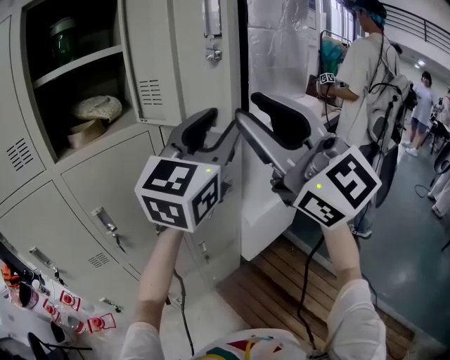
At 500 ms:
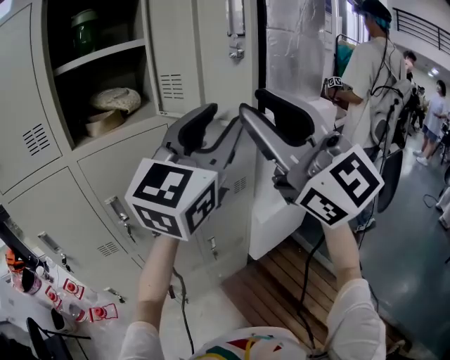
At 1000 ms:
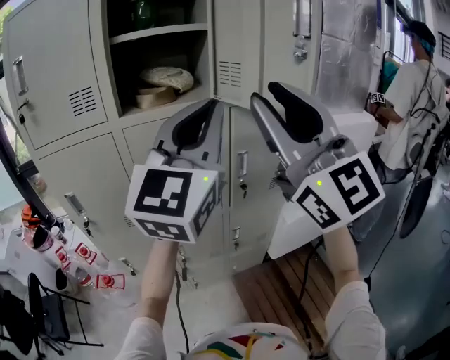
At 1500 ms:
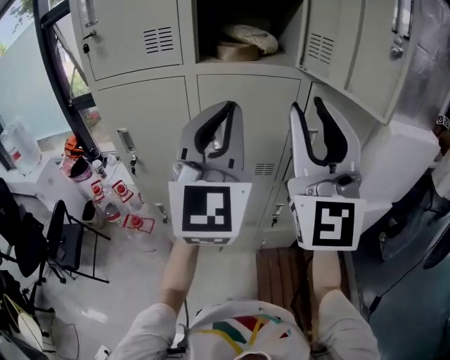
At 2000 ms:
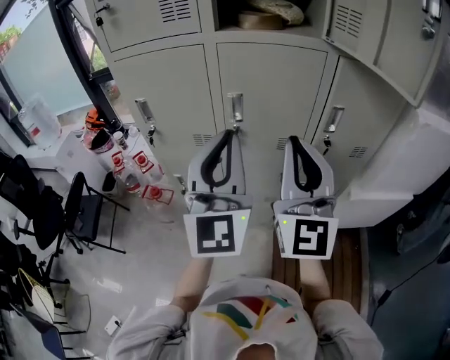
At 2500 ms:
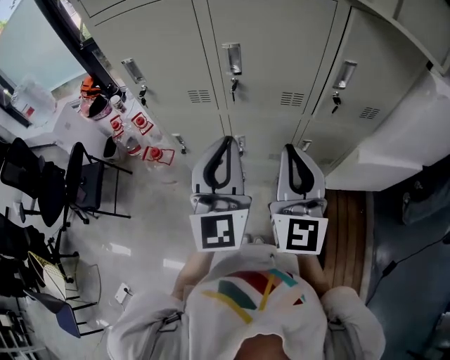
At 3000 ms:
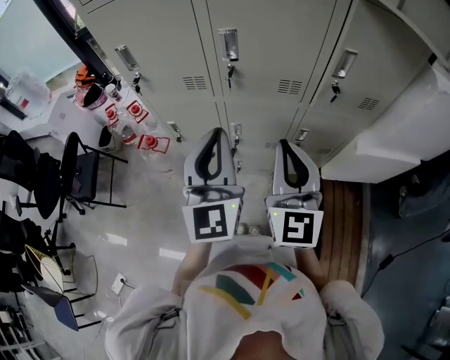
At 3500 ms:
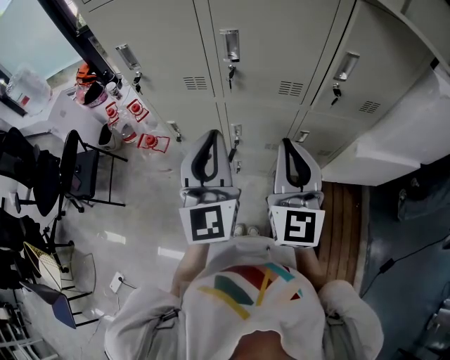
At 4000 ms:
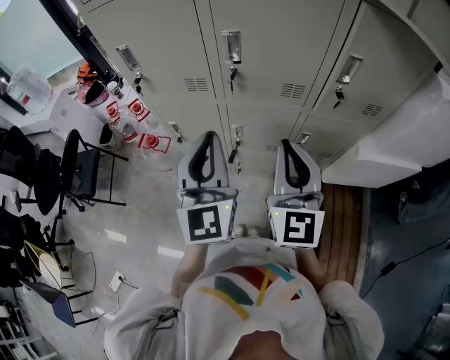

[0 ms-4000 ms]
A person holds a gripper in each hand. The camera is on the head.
0 ms to 2000 ms: The right gripper moves downward, approximately 20 cm, and closes its fingers, while the left gripper ends up roughly 35 cm from where it was, turns by about 60 degrees, and closes its fingers.
2000 ms to 4000 ms: Both grippers move downward, about 15 cm.

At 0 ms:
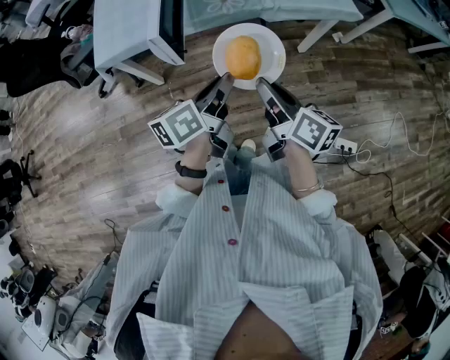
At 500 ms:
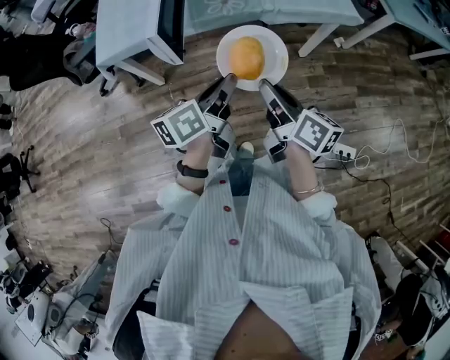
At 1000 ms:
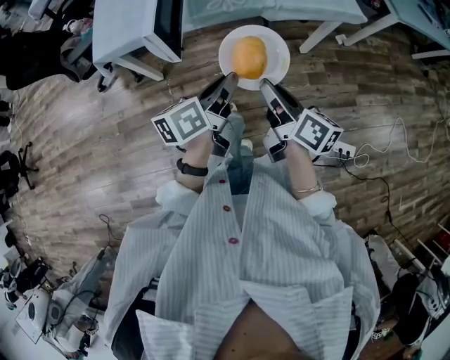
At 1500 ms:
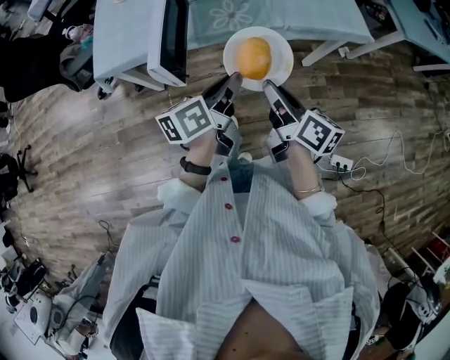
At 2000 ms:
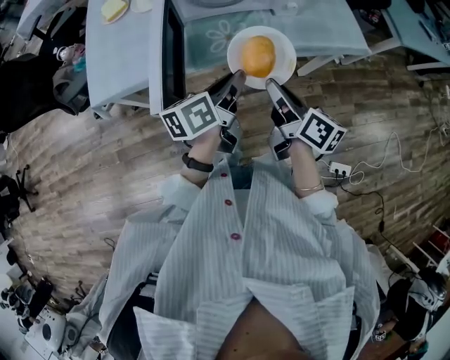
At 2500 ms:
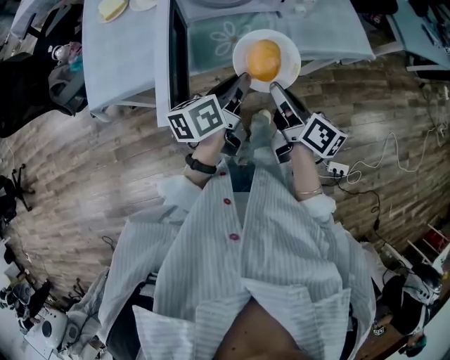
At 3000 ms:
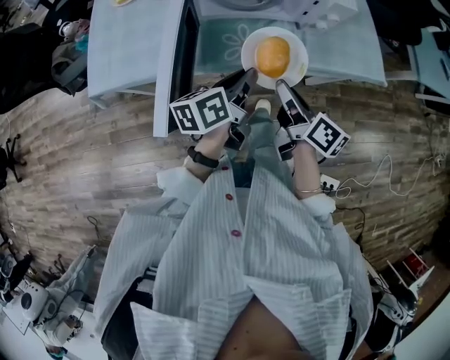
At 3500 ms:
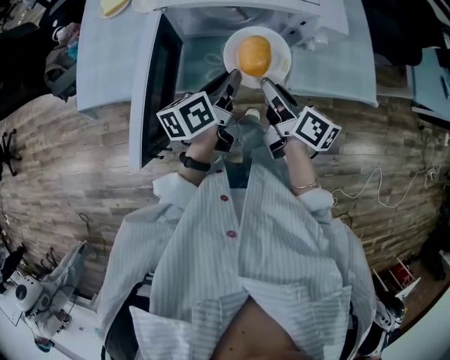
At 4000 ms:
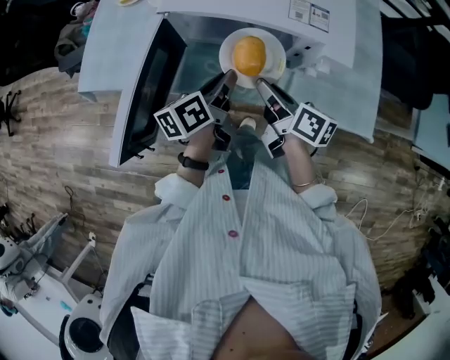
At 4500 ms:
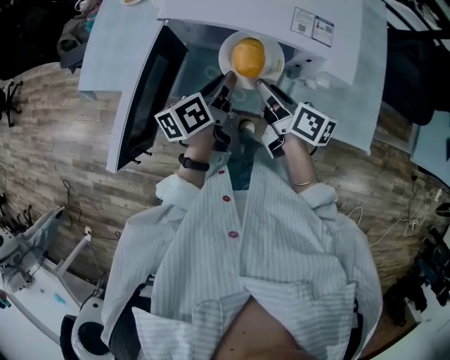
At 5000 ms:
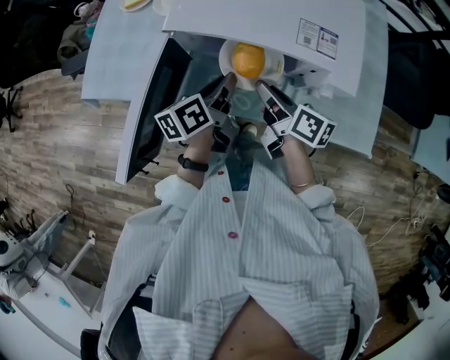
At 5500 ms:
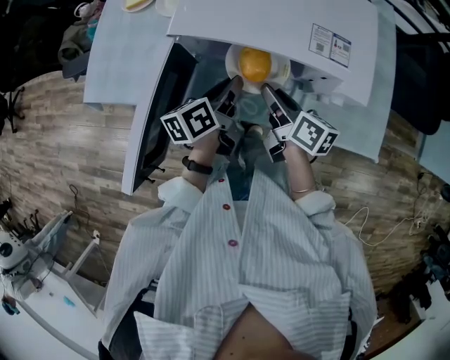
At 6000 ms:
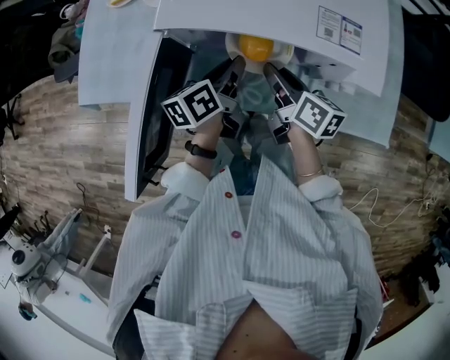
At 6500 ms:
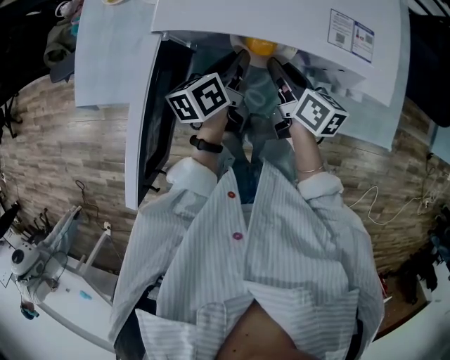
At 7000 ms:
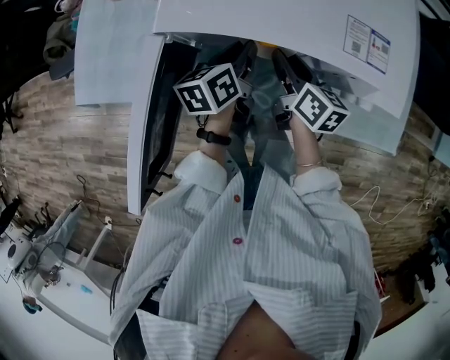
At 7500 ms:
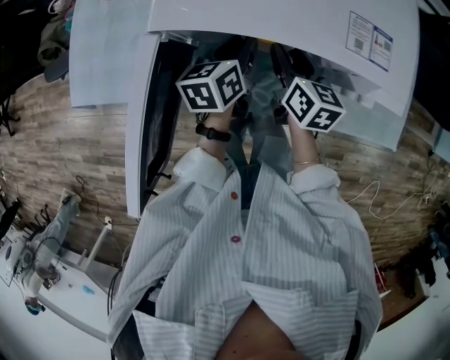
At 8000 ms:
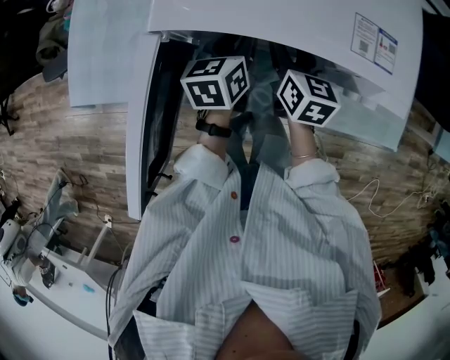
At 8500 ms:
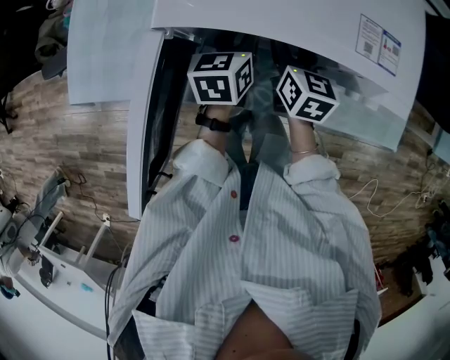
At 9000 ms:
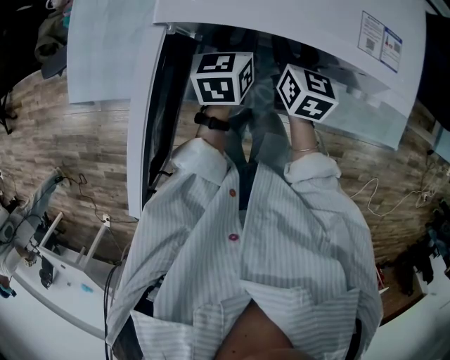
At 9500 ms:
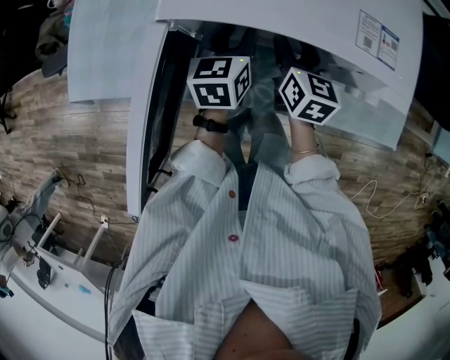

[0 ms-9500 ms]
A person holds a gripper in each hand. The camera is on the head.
0 ms to 2000 ms: The two grippers go some 20 cm forward.
2000 ms to 4000 ms: The right gripper ends up roughly 25 cm from where it was, and rotates some 30 degrees. Meanwhile the left gripper shifts by roughly 20 cm, and rotates approximately 30 degrees.
4000 ms to 5500 ms: The two grippers go some 5 cm forward.
5500 ms to 7500 ms: The two grippers go roughly 10 cm forward and downward. The right gripper turns by roughly 30 degrees; the left gripper swivels roughly 20 degrees.
7500 ms to 9500 ms: The grippers stay close to where they were, moving slightly.

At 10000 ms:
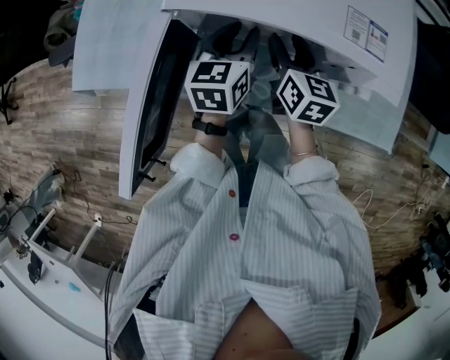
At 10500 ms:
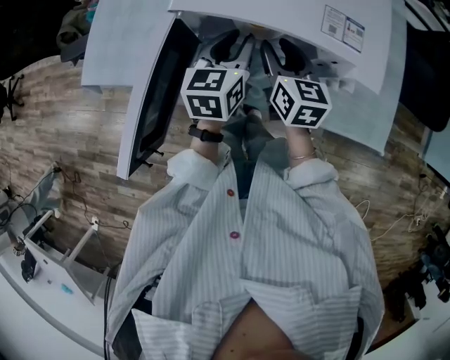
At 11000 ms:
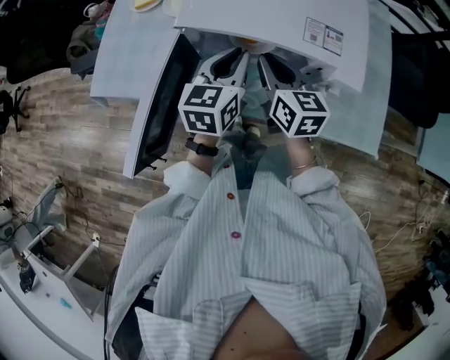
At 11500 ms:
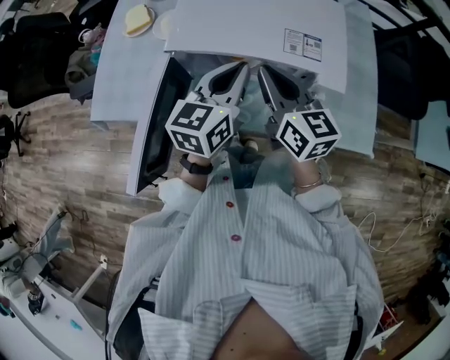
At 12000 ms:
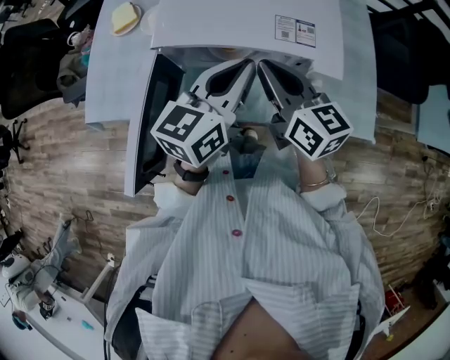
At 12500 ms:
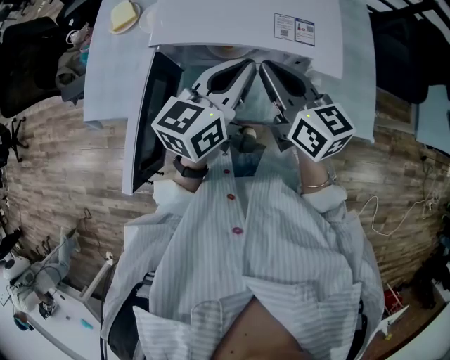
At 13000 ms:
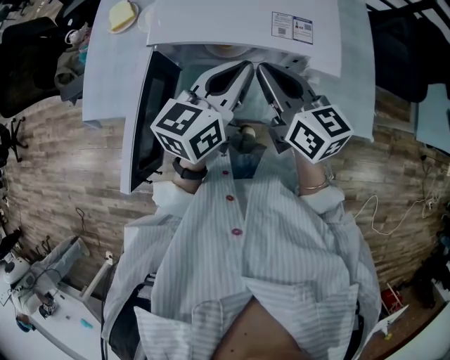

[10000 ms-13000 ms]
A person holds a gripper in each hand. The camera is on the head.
10000 ms to 11500 ms: The right gripper shifts about 20 cm upward, and closes; the left gripper heads upward and backward, covering approximately 20 cm, and closes up.
11500 ms to 13000 ms: The grippers make only small movements.

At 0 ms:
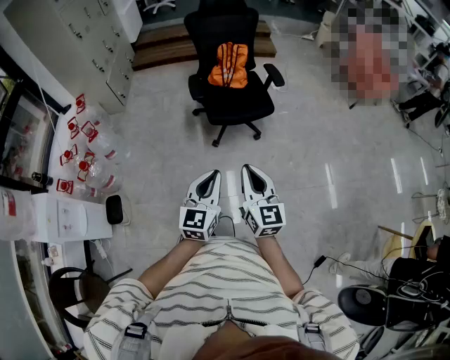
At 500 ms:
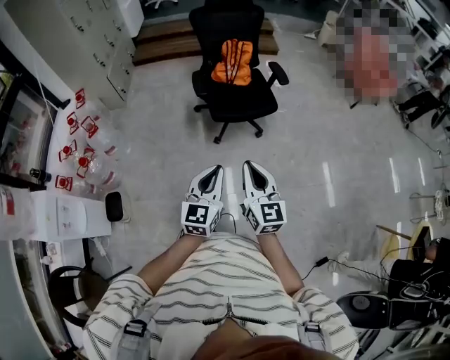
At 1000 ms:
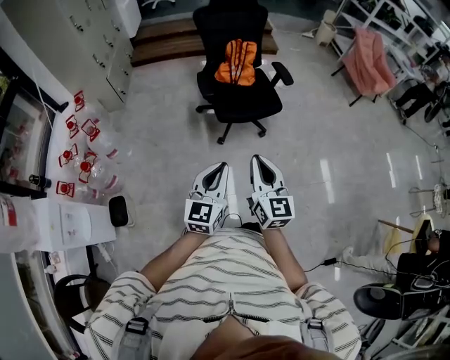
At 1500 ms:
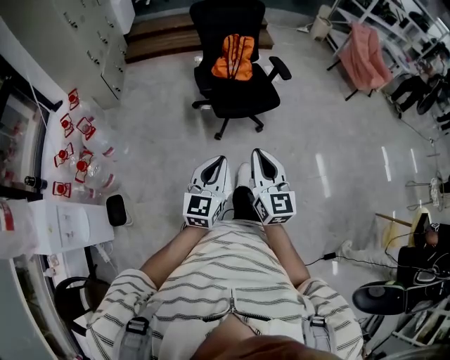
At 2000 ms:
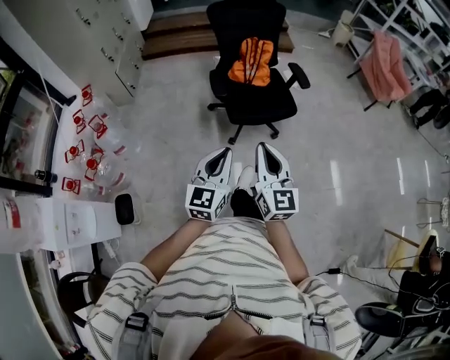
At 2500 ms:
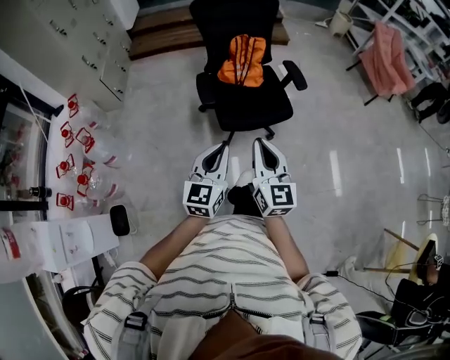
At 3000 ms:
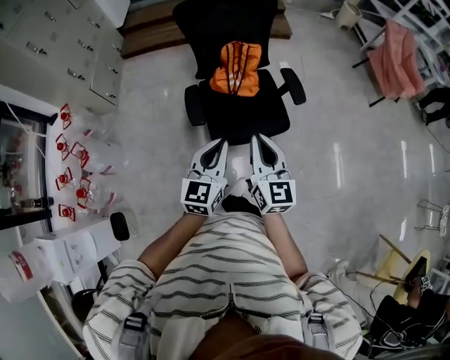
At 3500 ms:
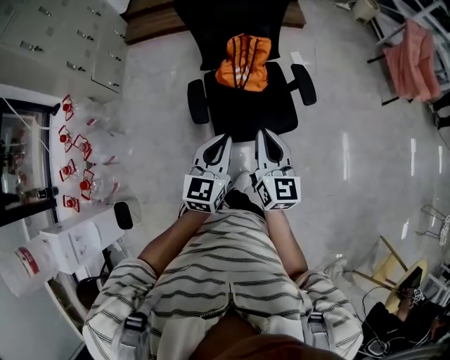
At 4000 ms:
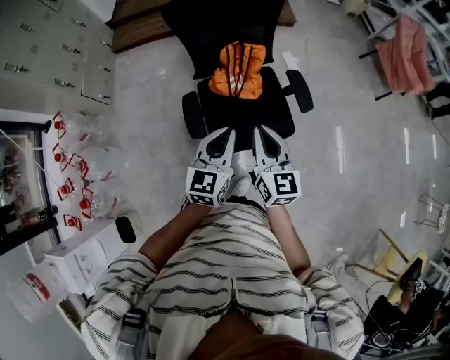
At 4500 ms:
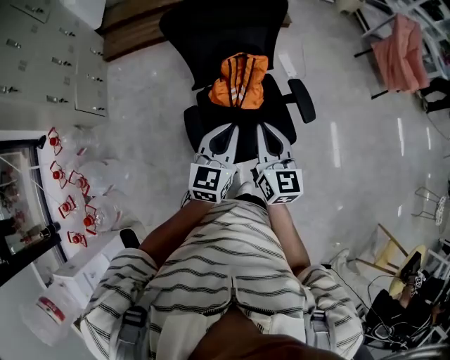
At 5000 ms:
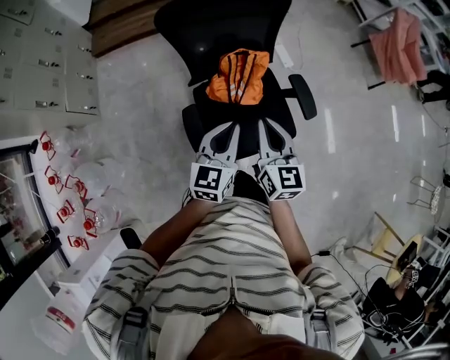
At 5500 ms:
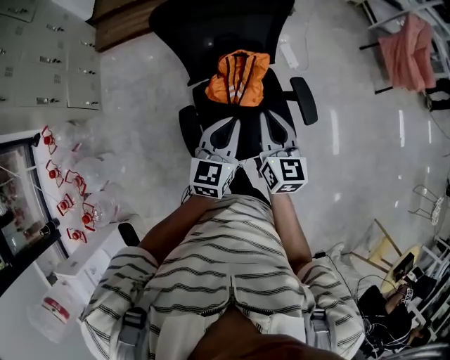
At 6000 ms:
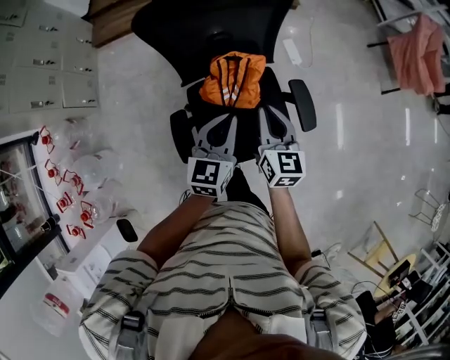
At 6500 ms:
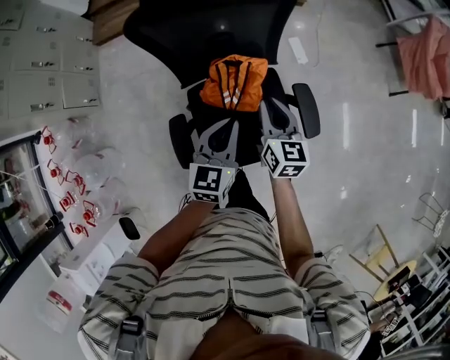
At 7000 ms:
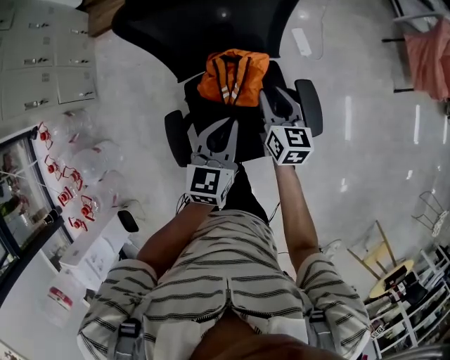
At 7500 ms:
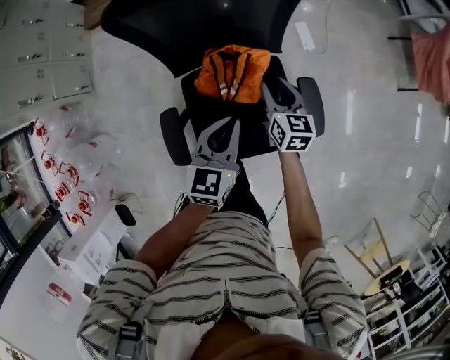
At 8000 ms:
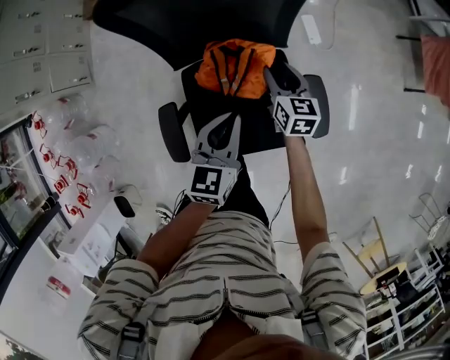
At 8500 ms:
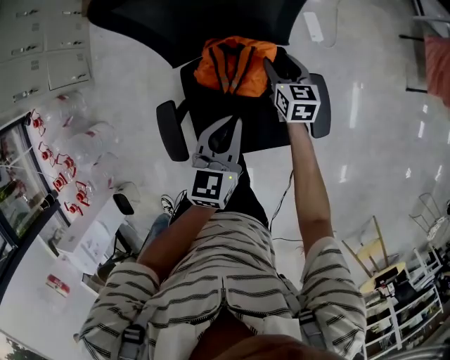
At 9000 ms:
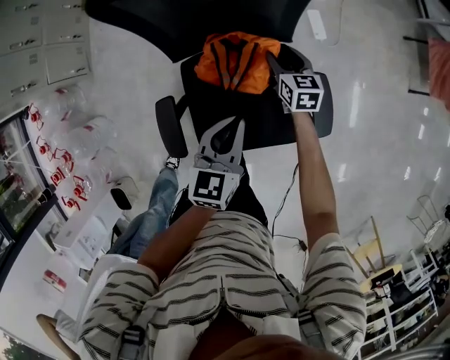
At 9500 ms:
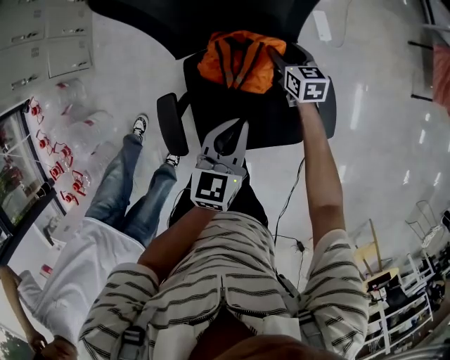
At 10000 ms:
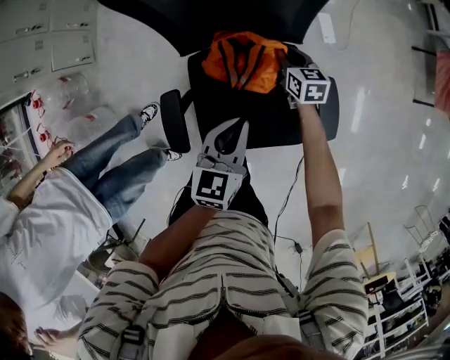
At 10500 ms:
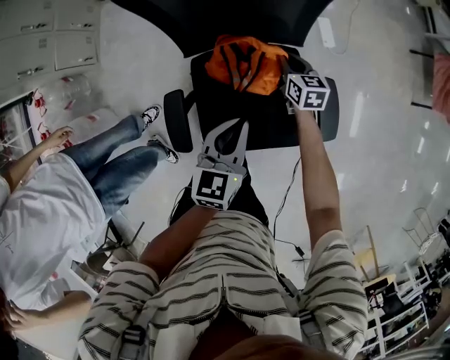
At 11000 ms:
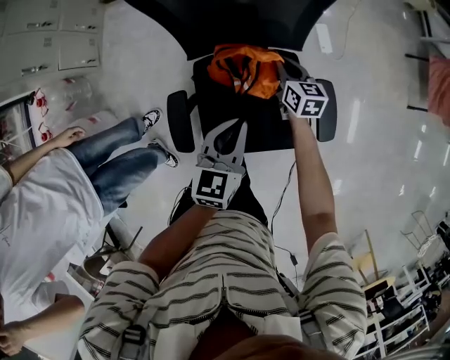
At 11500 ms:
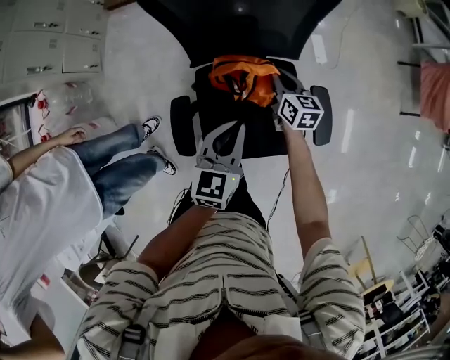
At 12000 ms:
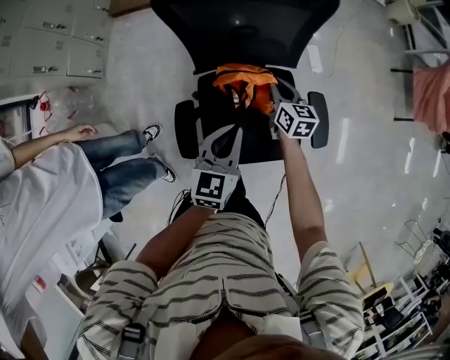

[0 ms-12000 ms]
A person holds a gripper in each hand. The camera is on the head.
0 ms to 2000 ms: Both grippers move forward and to the left, approximately 15 cm.
2000 ms to 4000 ms: The pair of grippers is taken forward, roughly 50 cm.
4000 ms to 6000 ms: The two grippers go roughly 25 cm forward.
6000 ms to 8000 ms: The left gripper heads downward and forward, covering about 10 cm. The right gripper moves downward and forward, some 25 cm, and opens its fingers.
8000 ms to 10000 ms: The right gripper travels downward and forward by about 10 cm, and closes its fingers.
10000 ms to 12000 ms: The left gripper shifts roughly 10 cm upward and to the left. Meanwhile the right gripper shifts some 15 cm upward, backward and to the left.
